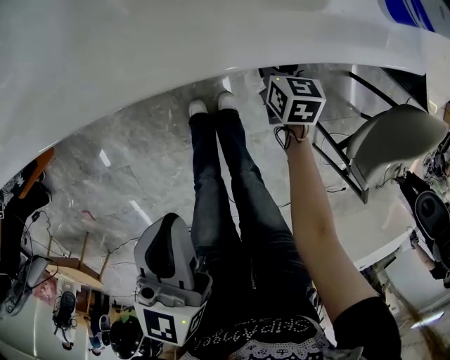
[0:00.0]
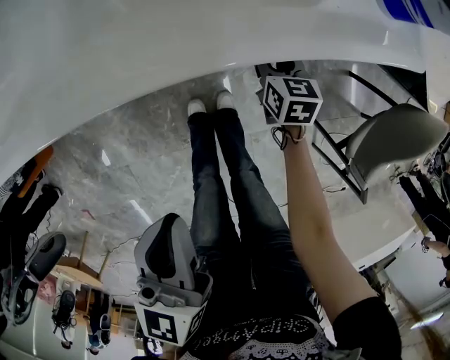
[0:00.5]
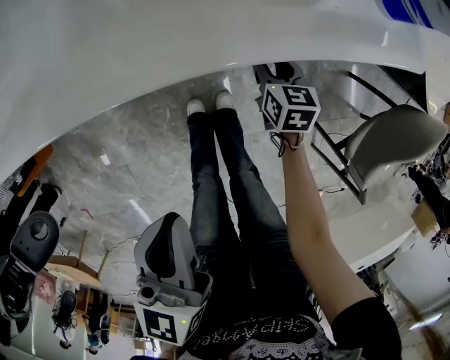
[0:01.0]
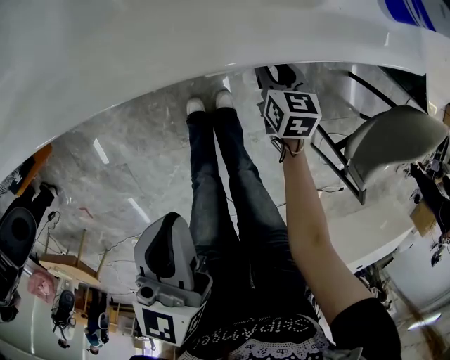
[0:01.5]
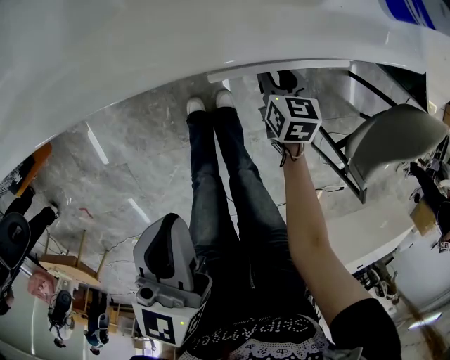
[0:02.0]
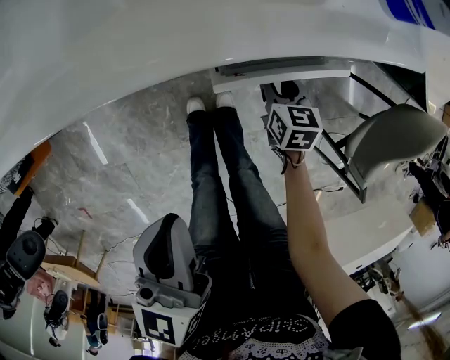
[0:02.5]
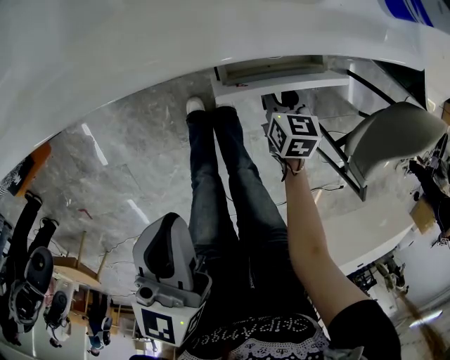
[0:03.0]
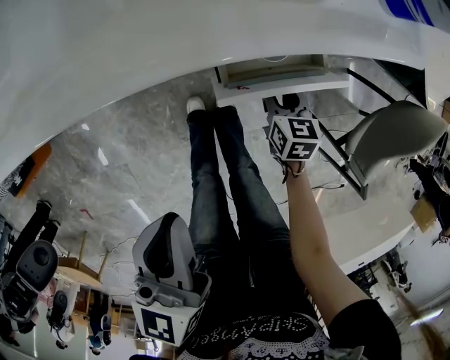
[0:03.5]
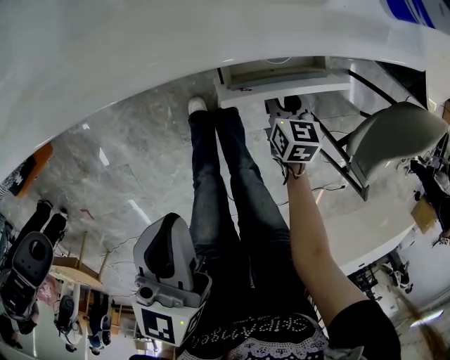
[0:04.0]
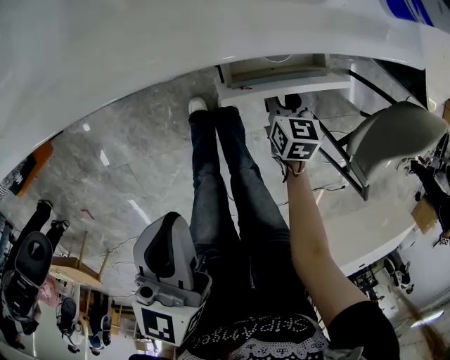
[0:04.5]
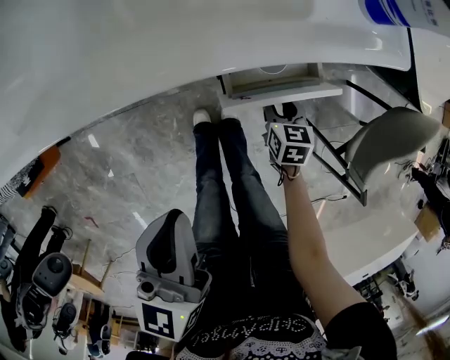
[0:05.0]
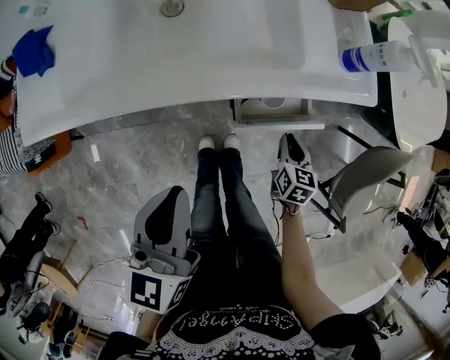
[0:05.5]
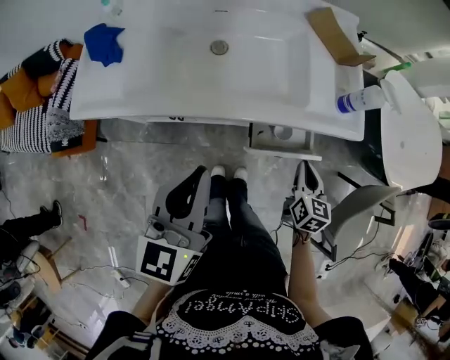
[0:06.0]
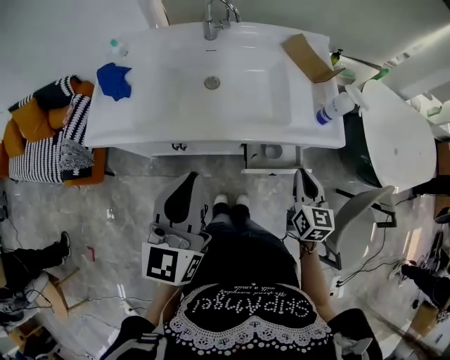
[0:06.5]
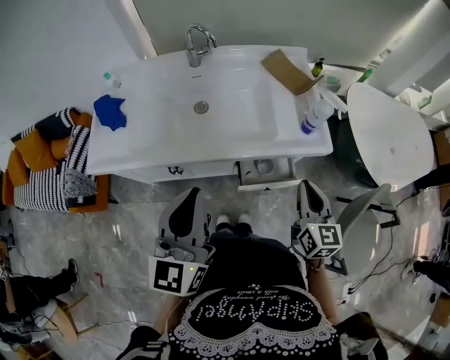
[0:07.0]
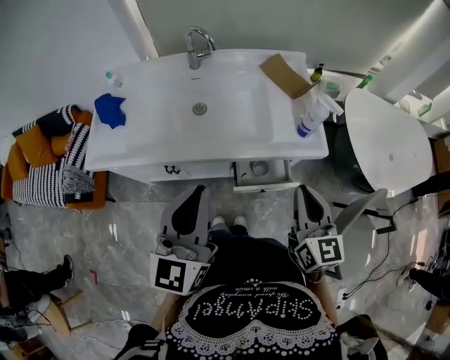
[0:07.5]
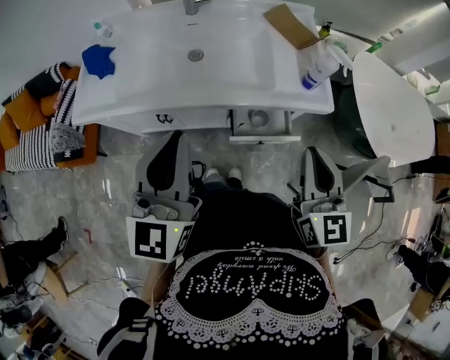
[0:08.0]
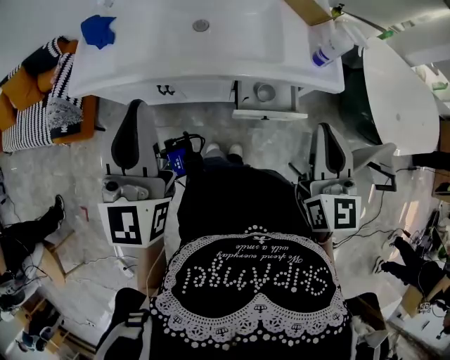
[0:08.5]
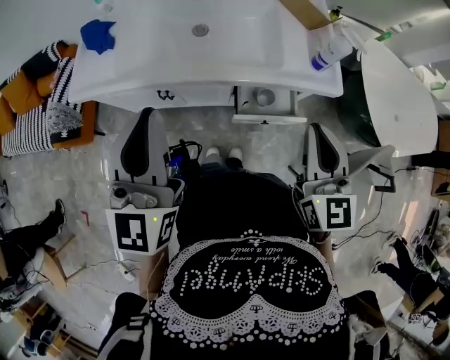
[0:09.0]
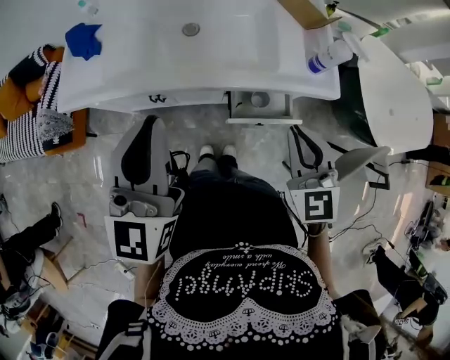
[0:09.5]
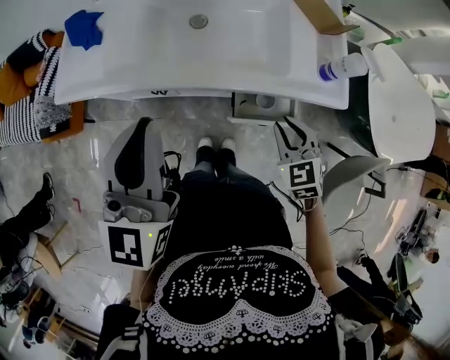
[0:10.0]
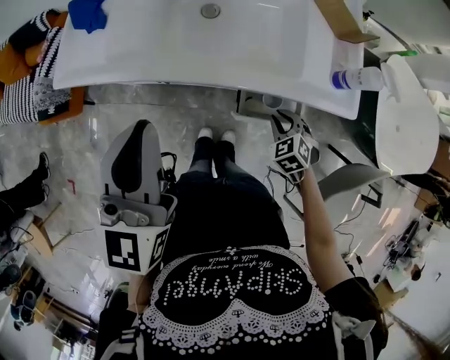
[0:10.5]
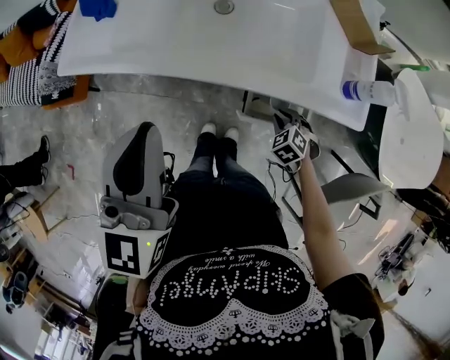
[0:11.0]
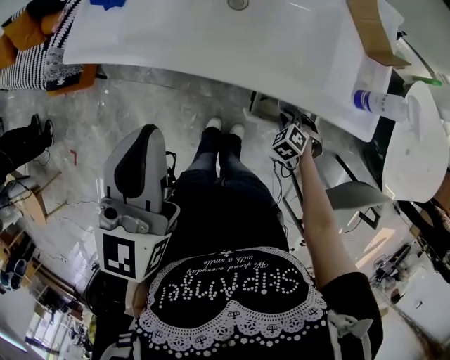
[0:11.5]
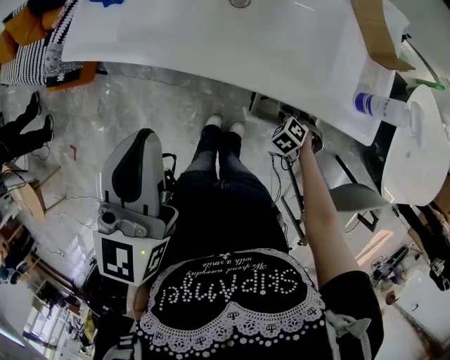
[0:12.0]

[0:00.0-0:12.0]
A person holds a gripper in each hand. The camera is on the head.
0:00.0 to 0:02.0: The grippers move only a little.
0:02.0 to 0:04.0: The right gripper shifts about 5 cm backward.
0:04.0 to 0:06.0: The right gripper moves upward, about 25 cm, and closes its fingers. The left gripper shifts some 15 cm upward, and swivels roughly 20 degrees.
0:06.0 to 0:08.0: The left gripper moves upward, approximately 10 cm, and changes its angle by approximately 20 degrees, while the right gripper is displaced upward by approximately 25 cm, and changes its angle by roughly 30 degrees.
0:08.0 to 0:10.0: The right gripper goes some 20 cm downward, and angles its fingers downward, by approximately 30 degrees. The left gripper travels to the left by about 5 cm.
0:10.0 to 0:12.0: The right gripper goes roughly 25 cm downward, and tilts its fingers approximately 40 degrees downward.

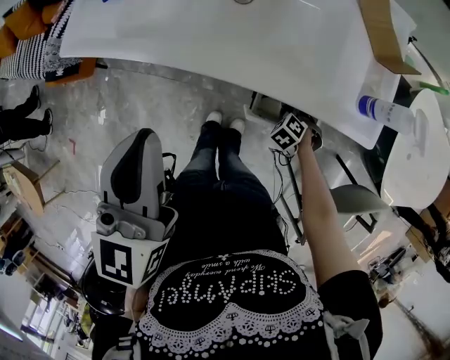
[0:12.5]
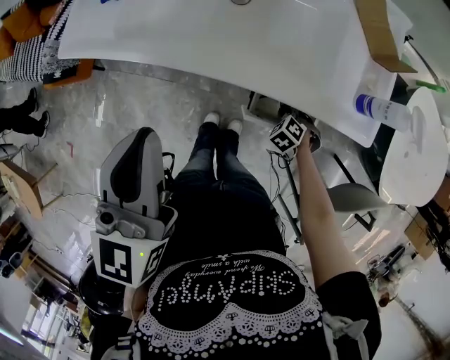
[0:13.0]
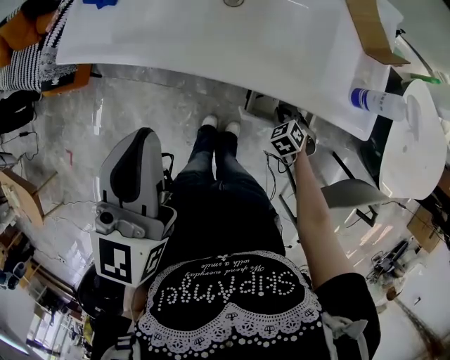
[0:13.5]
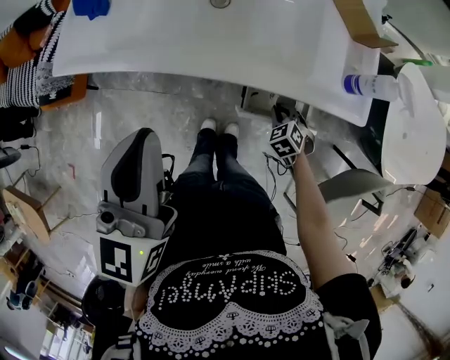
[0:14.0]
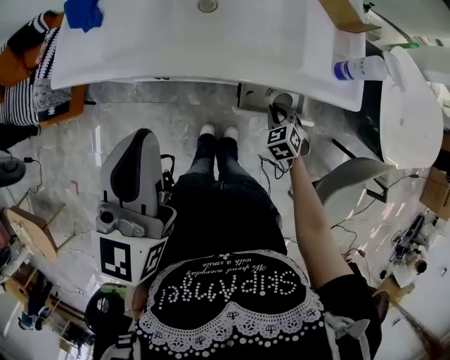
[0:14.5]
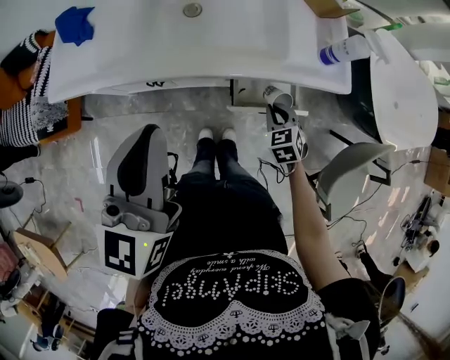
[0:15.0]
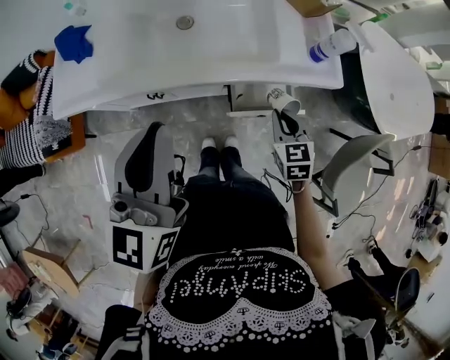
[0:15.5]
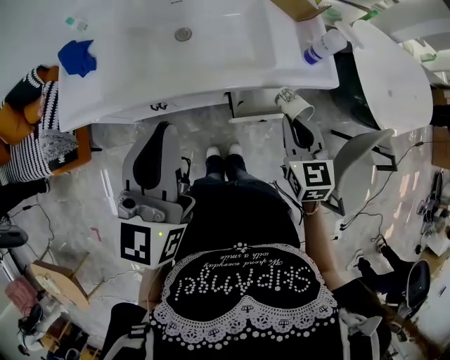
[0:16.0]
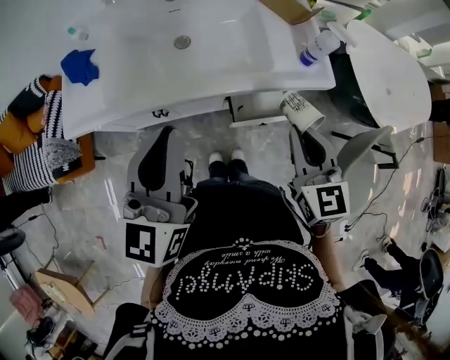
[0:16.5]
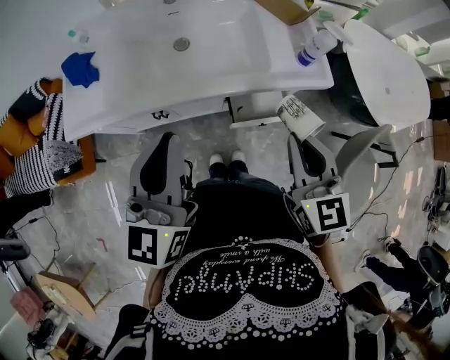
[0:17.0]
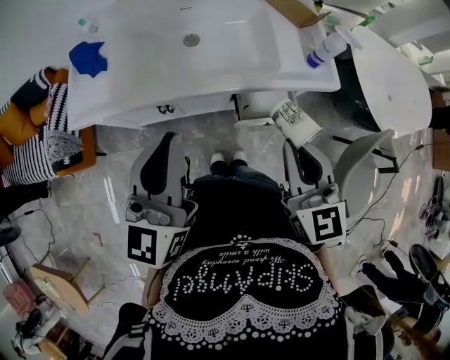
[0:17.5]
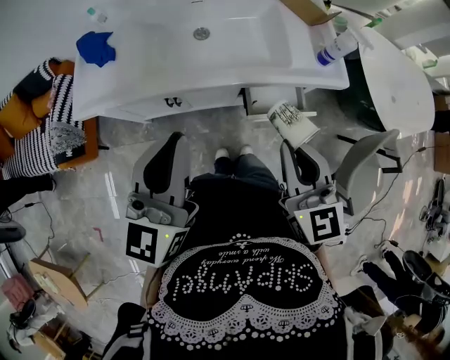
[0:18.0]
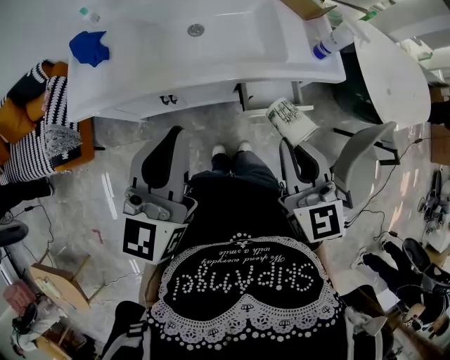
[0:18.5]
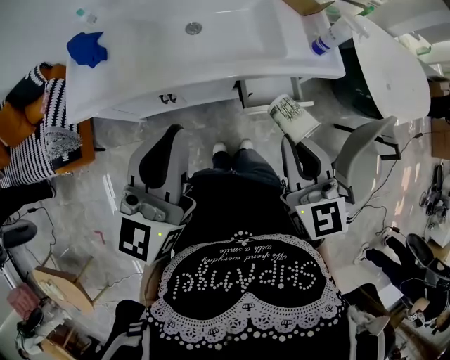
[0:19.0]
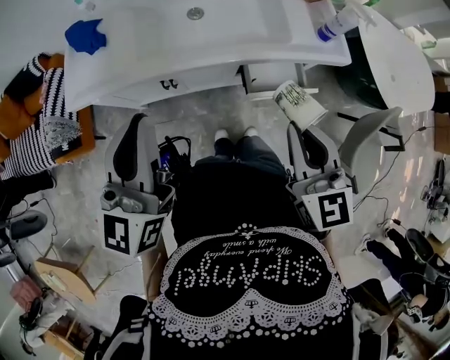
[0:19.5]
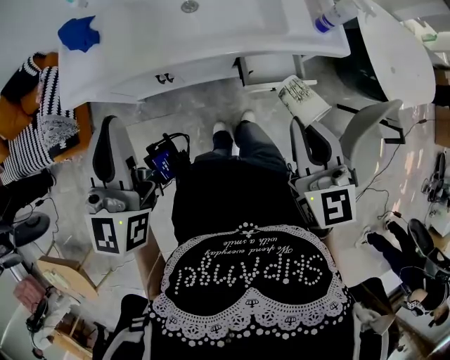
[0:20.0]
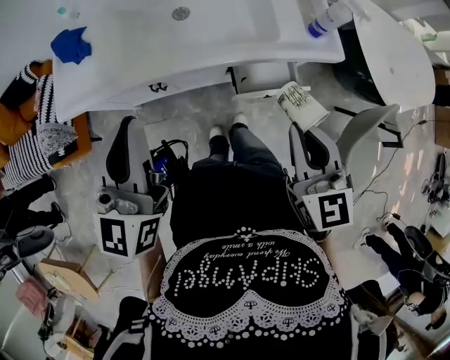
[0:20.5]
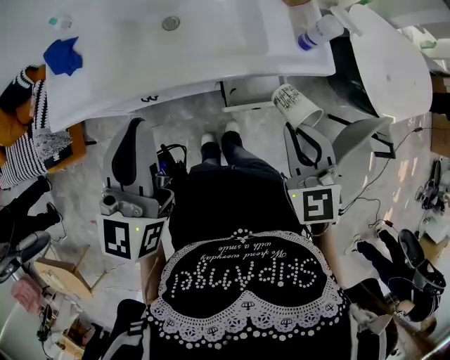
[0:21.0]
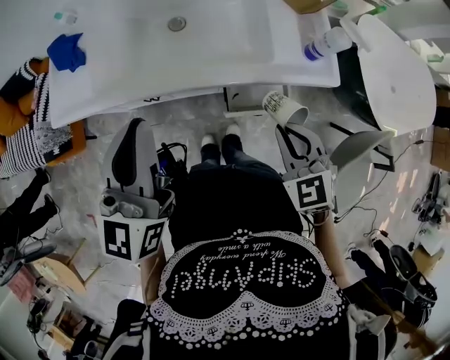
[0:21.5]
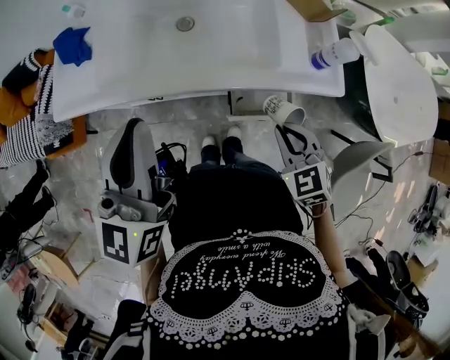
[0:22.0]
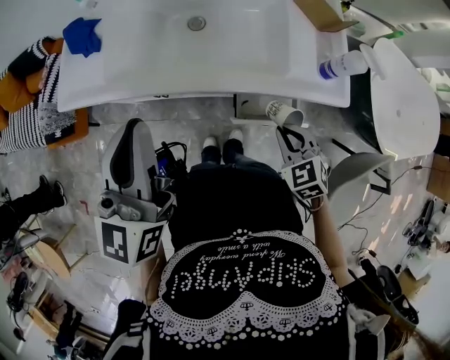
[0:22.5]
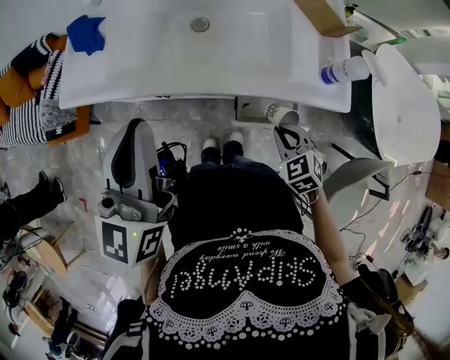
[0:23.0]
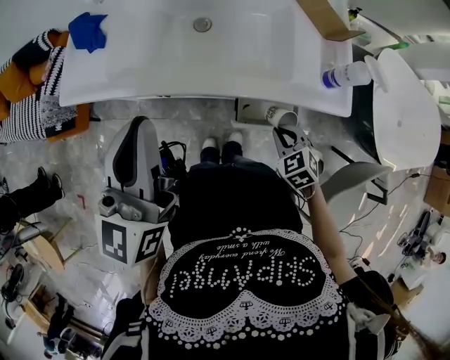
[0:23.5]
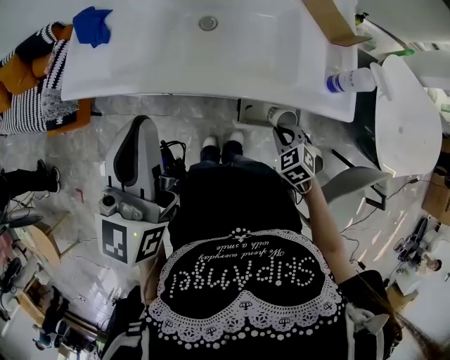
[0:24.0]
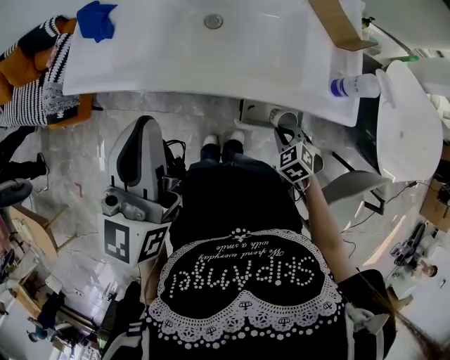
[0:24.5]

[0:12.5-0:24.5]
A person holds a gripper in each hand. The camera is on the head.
0:12.5 to 0:14.5: The right gripper is displaced upward by roughly 10 cm, and turns by about 30 degrees.
0:14.5 to 0:16.5: The right gripper shifts approximately 30 cm upward, and tips its fingers upward by roughly 40 degrees.
0:16.5 to 0:18.5: The right gripper heads to the left and backward, covering some 10 cm. The left gripper shifts by some 5 cm.
0:20.5 to 0:22.5: The left gripper shifts about 5 cm to the right. The right gripper goes approximately 20 cm downward and forward, and swivels roughly 40 degrees.
0:22.5 to 0:24.5: The right gripper goes about 10 cm downward.

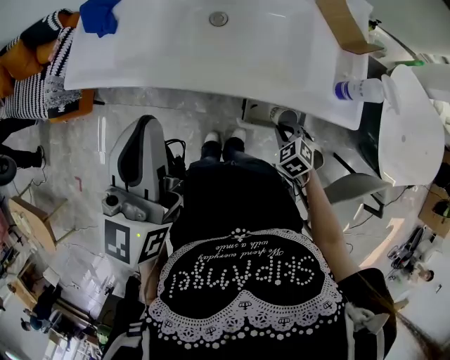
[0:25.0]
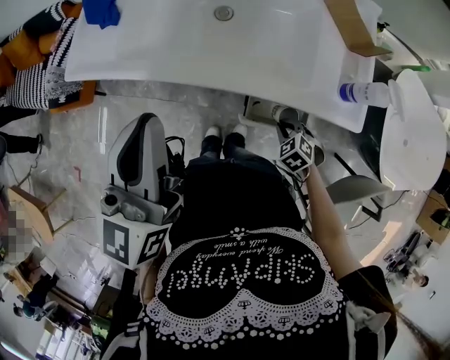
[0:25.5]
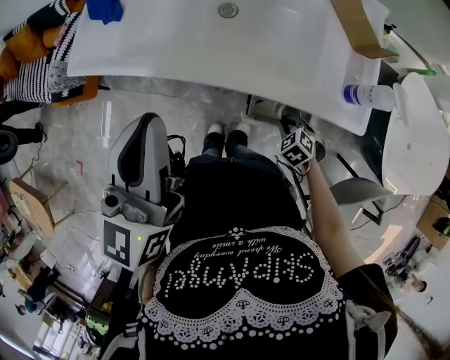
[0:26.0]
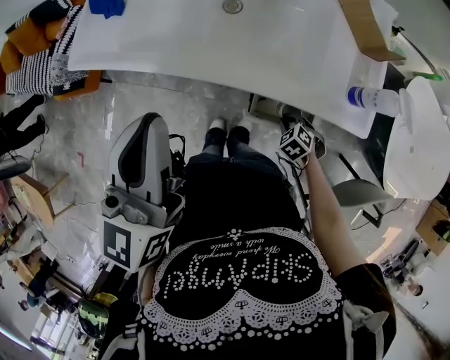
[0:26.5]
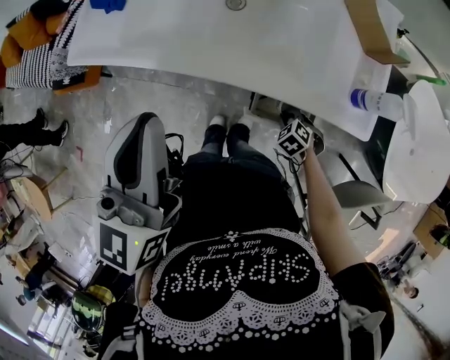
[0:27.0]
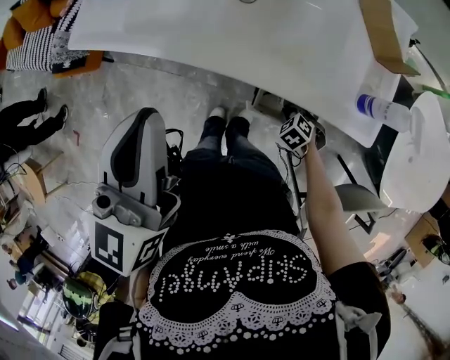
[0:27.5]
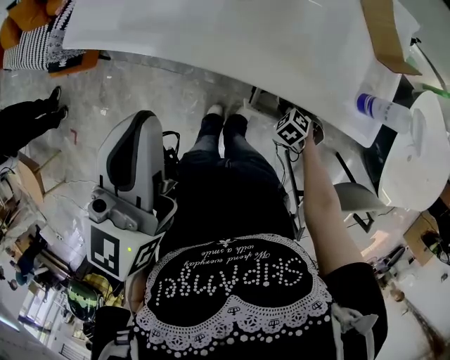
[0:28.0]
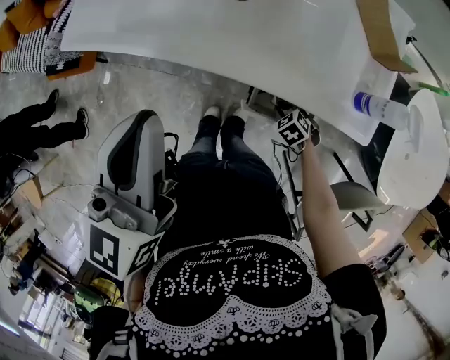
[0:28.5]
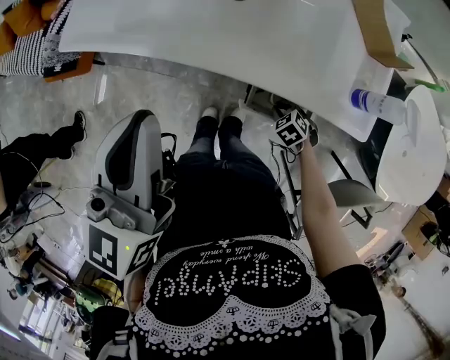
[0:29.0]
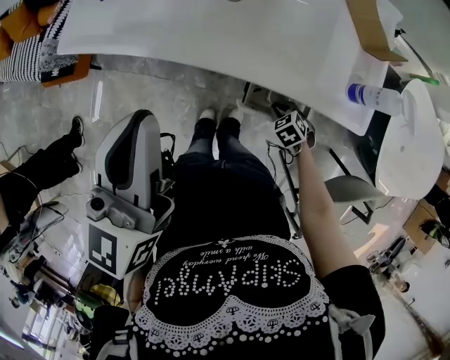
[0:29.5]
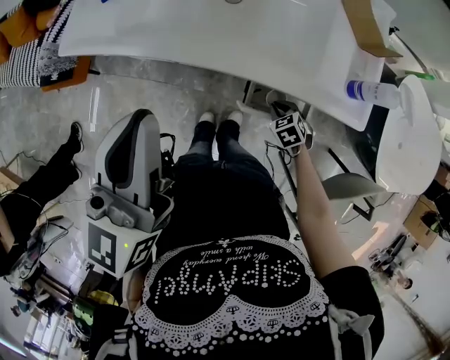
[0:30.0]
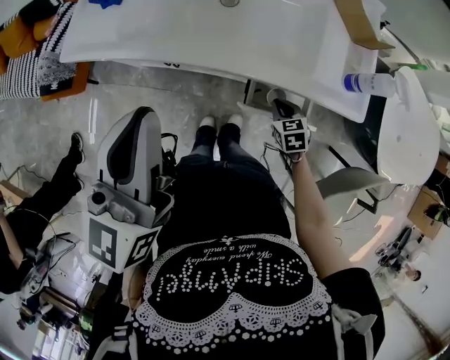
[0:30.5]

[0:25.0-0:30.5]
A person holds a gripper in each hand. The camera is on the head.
0:25.0 to 0:27.0: The right gripper heads downward, covering roughly 10 cm.
0:27.0 to 0:28.5: The grippers move only a little.
0:28.5 to 0:30.5: The left gripper moves to the left, about 5 cm. Meanwhile the right gripper goes some 10 cm upward, and turns by about 40 degrees.
